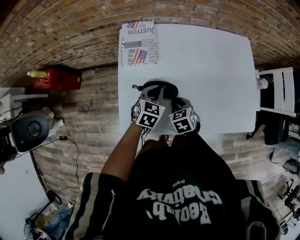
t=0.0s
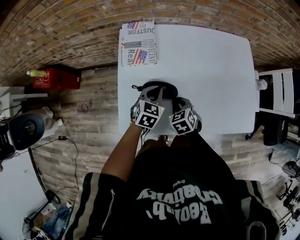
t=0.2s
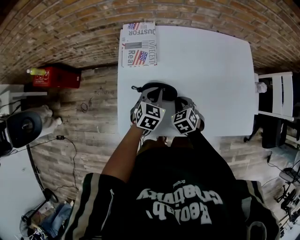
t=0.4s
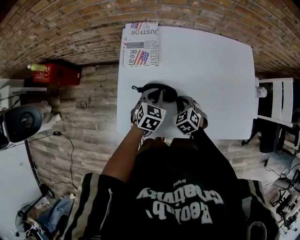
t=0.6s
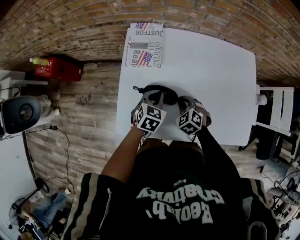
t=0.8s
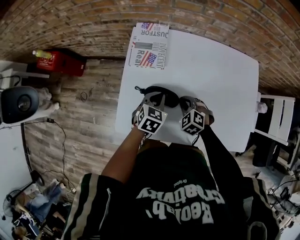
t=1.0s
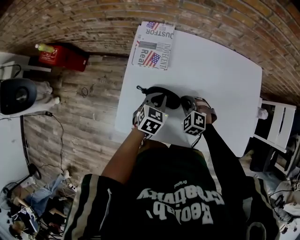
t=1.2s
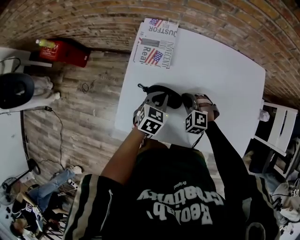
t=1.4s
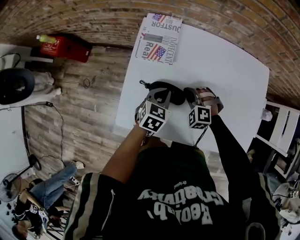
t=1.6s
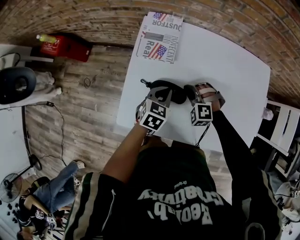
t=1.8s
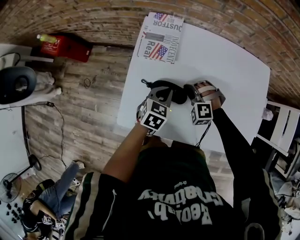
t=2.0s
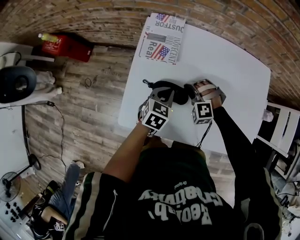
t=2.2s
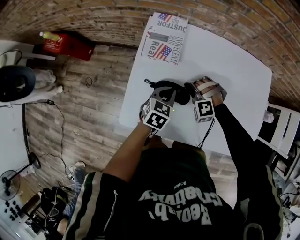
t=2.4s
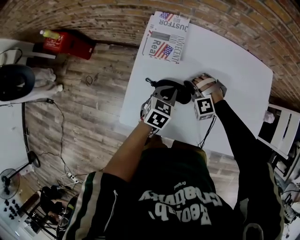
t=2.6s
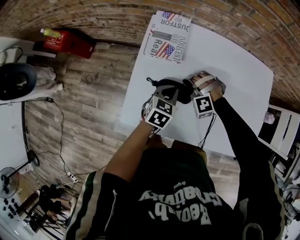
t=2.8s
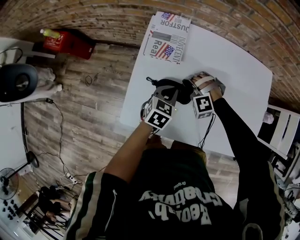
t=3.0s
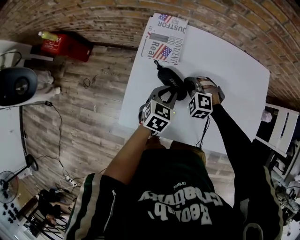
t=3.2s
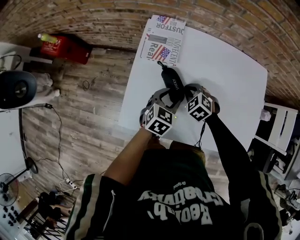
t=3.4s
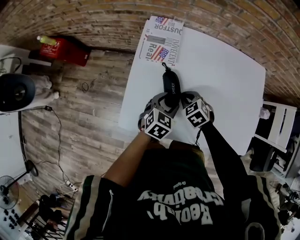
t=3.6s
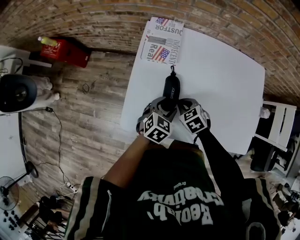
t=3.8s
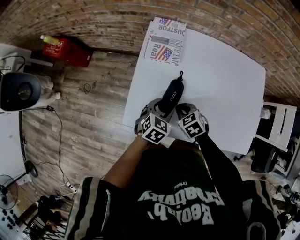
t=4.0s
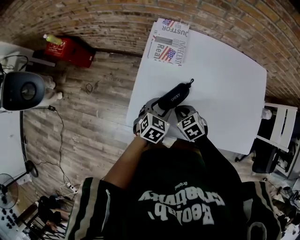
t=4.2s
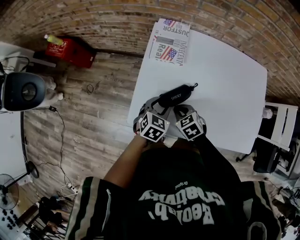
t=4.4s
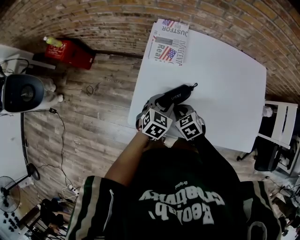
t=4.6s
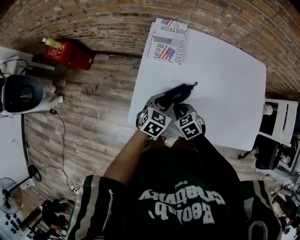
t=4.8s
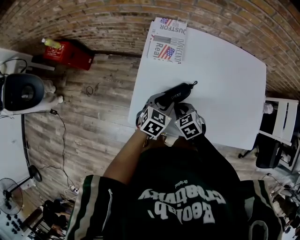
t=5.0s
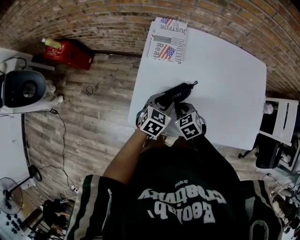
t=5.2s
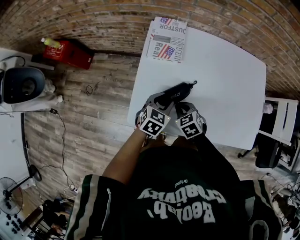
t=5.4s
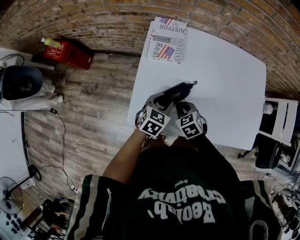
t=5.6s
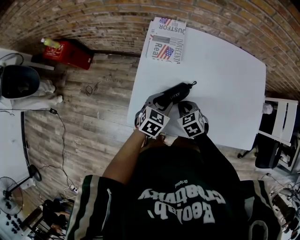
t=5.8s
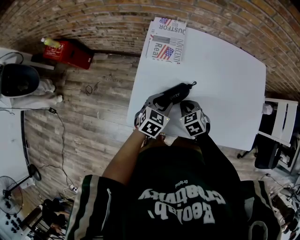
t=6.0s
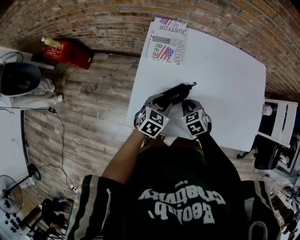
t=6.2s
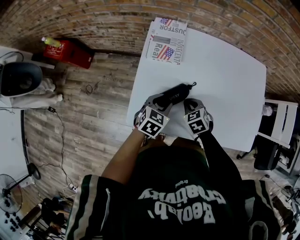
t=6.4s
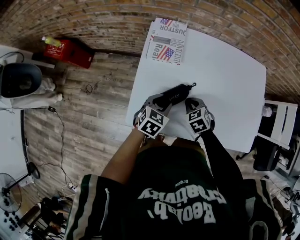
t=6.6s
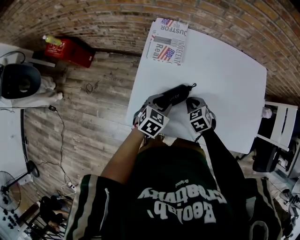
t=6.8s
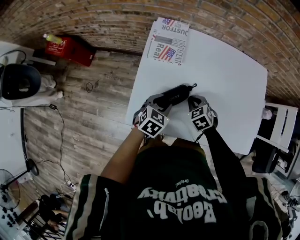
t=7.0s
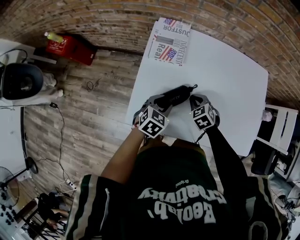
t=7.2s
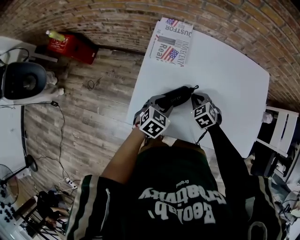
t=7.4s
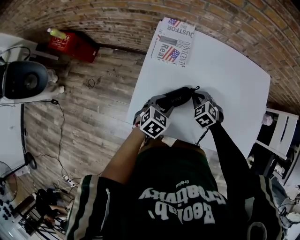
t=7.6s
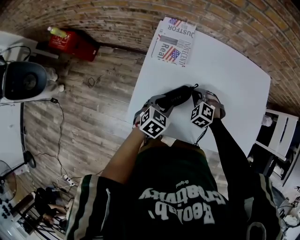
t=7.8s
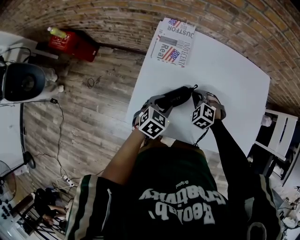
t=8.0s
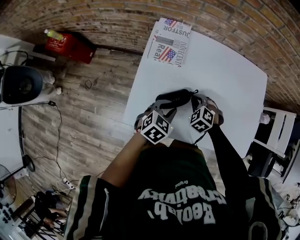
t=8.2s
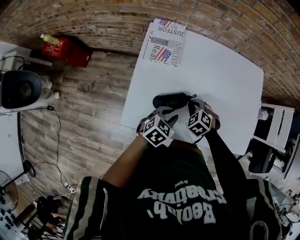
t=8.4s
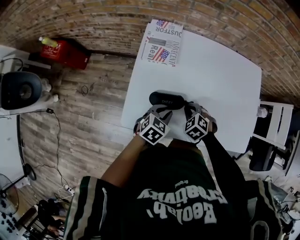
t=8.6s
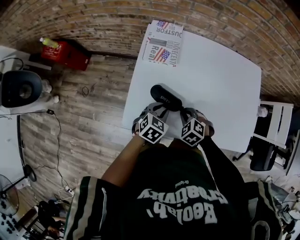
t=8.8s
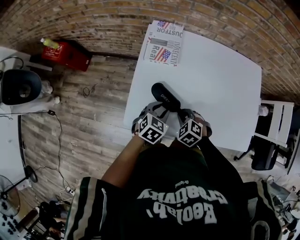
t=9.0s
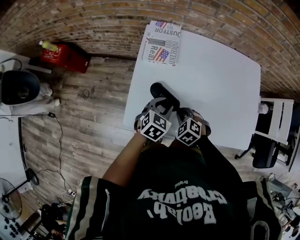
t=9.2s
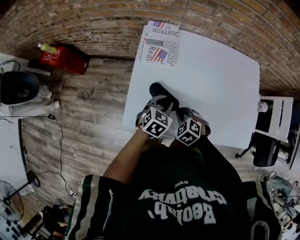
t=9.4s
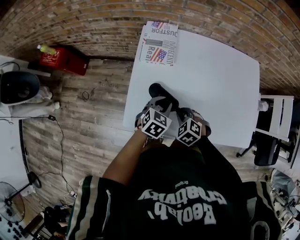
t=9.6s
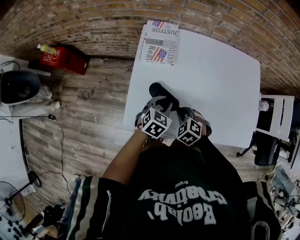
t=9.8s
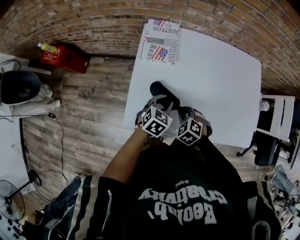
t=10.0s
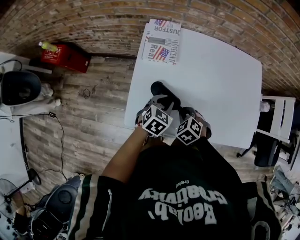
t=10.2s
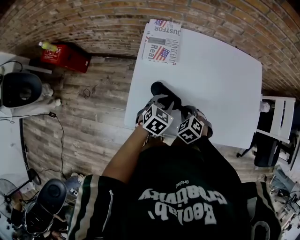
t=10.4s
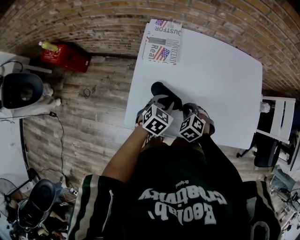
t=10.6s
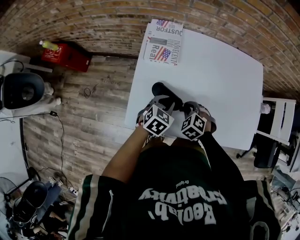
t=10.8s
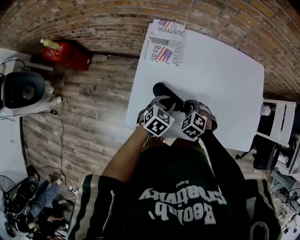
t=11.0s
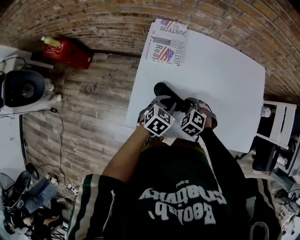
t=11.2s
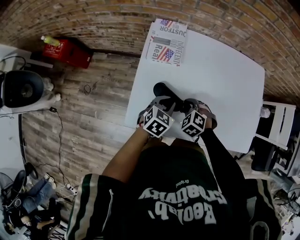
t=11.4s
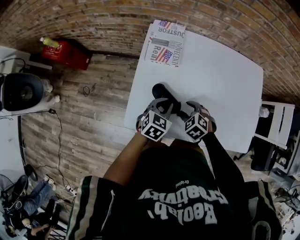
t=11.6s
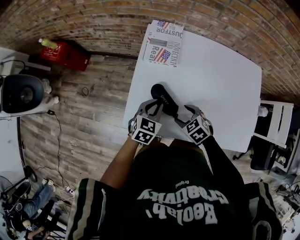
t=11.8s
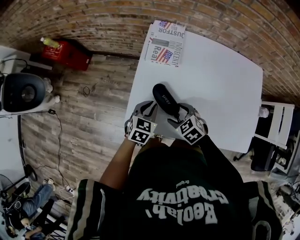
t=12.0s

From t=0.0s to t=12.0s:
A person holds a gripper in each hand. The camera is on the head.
From t=0.0s to t=1.6s: The right gripper travels forward by roughly 10 cm, and rotates around the line of its fingers by roughly 70 degrees, counterclockwise from behind.
From t=1.6s to t=3.0s: The right gripper turns by about 30 degrees.
From t=3.0s to t=4.4s: The left gripper is displaced backward and to the left by about 10 cm, and opens up. Meanwhile the right gripper is displaced backward by roughly 10 cm, and twists approximately 80 degrees clockwise, seen from behind.
From t=4.4s to t=6.0s: The grippers make only small movements.
From t=6.0s to t=7.6s: The right gripper goes about 5 cm forward, and rotates roughly 20 degrees.
From t=7.6s to t=9.0s: The right gripper is displaced backward by some 10 cm.
From t=9.0s to t=10.4s: The grippers stay close to where they were, moving slightly.
From t=10.4s to t=12.0s: The right gripper ends up approximately 5 cm from where it was, turns by some 20 degrees, and opens its fingers, while the left gripper shifts by approximately 10 cm.

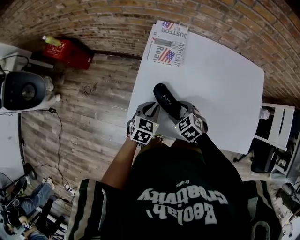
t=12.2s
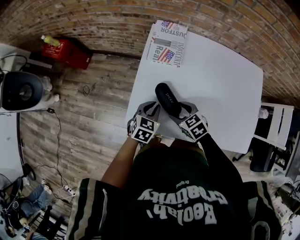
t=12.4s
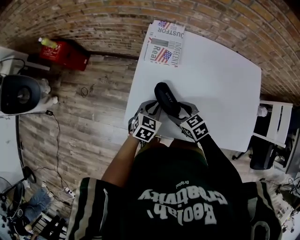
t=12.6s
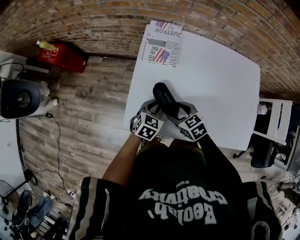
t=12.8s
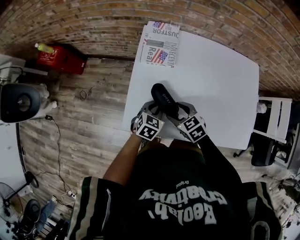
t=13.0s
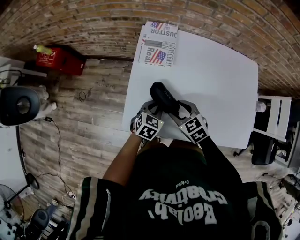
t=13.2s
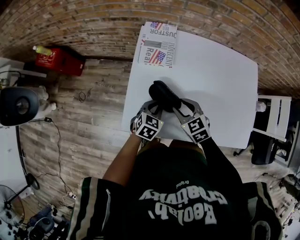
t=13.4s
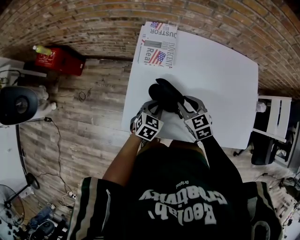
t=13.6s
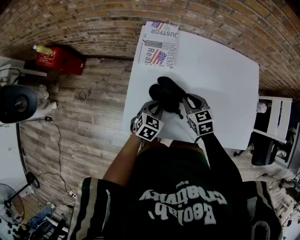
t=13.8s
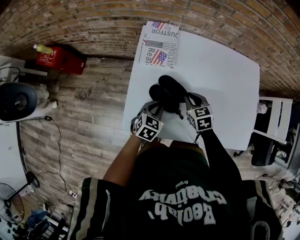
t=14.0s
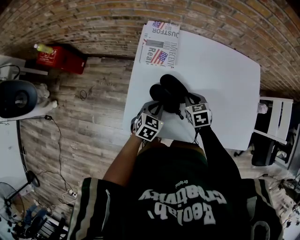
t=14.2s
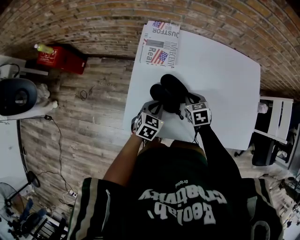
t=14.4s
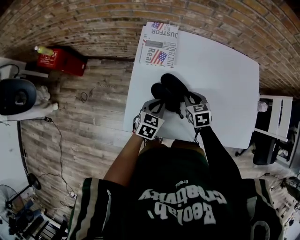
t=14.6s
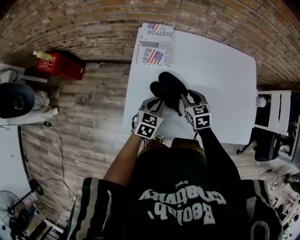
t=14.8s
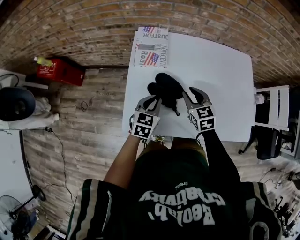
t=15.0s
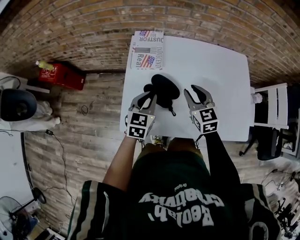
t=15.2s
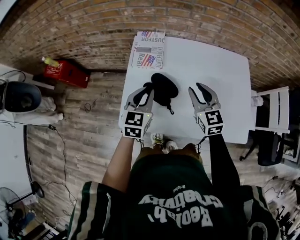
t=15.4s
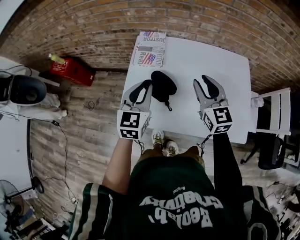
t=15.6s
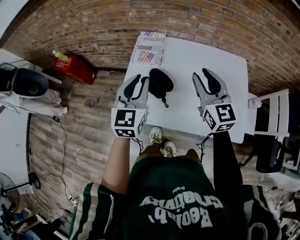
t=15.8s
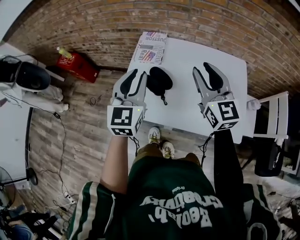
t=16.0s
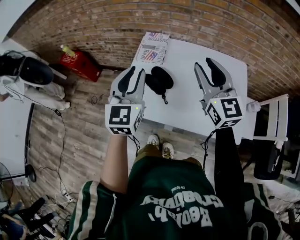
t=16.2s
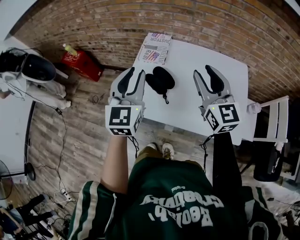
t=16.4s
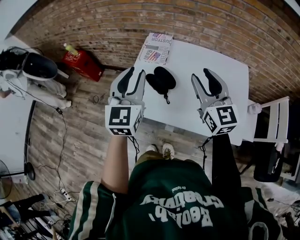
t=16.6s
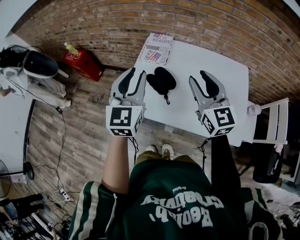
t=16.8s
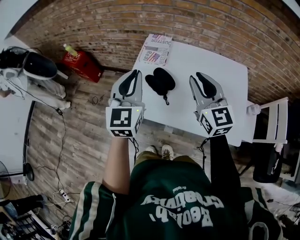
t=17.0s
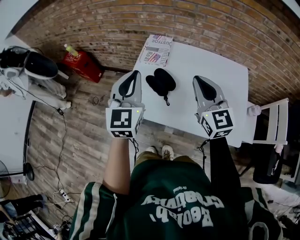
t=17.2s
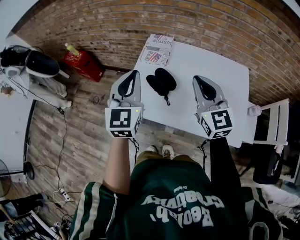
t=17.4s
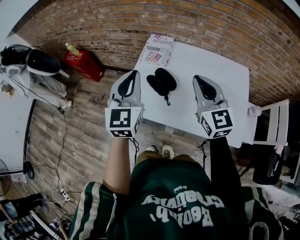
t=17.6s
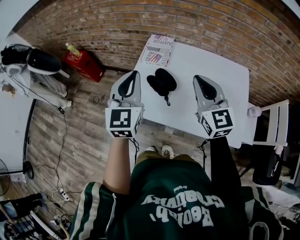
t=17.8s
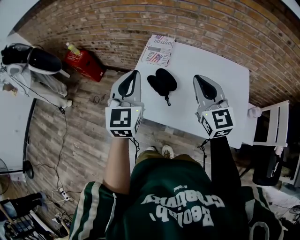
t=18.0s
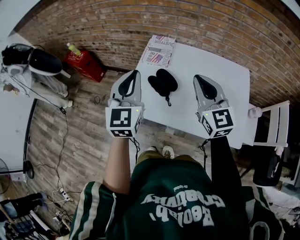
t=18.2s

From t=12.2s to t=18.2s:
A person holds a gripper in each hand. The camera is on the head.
From t=12.2s to t=13.8s: The right gripper goes about 10 cm to the right and forward, changes its angle by roughly 30 degrees, and closes its fingers. Meanwhile the left gripper moves some 5 cm.
From t=13.8s to t=15.2s: The grippers both shift upward by roughly 10 cm.
From t=15.2s to t=16.6s: The grippers both shift upward and backward by about 25 cm. The left gripper changes its angle by approximately 30 degrees. Meanwhile the right gripper swivels approximately 30 degrees.
From t=16.6s to t=18.2s: The right gripper closes up. The left gripper closes up.

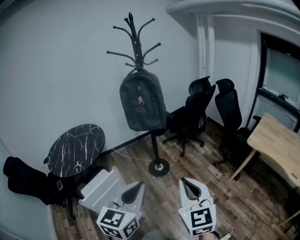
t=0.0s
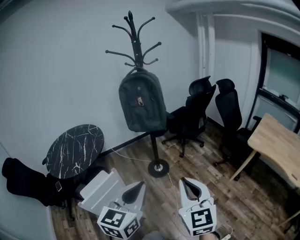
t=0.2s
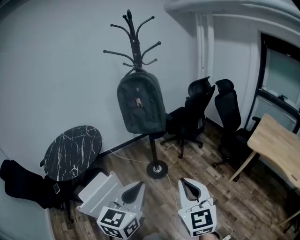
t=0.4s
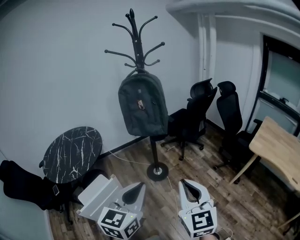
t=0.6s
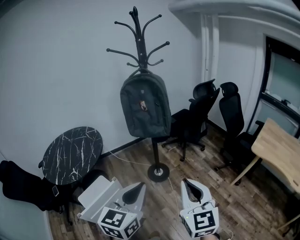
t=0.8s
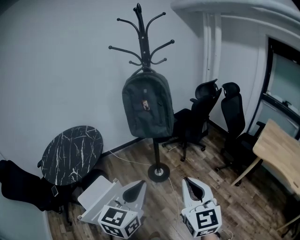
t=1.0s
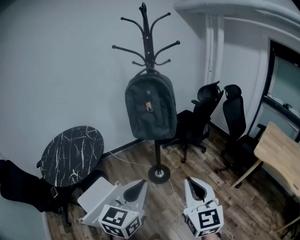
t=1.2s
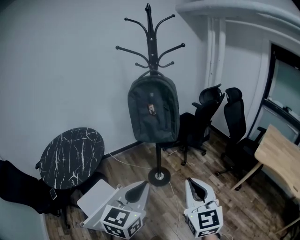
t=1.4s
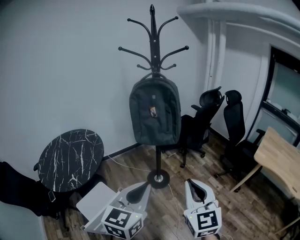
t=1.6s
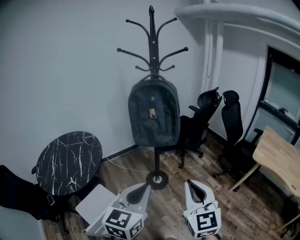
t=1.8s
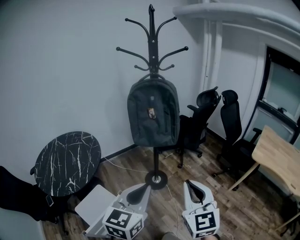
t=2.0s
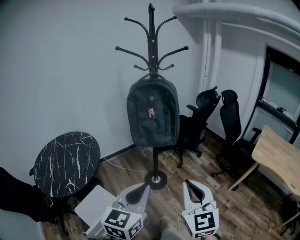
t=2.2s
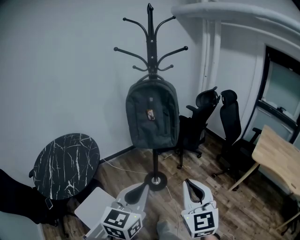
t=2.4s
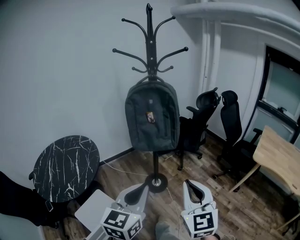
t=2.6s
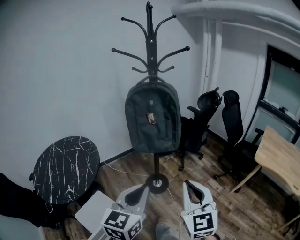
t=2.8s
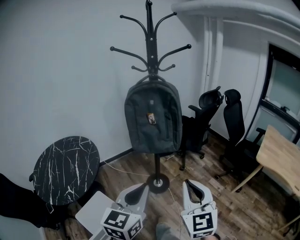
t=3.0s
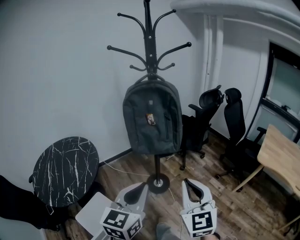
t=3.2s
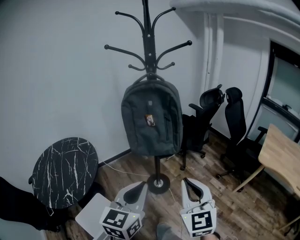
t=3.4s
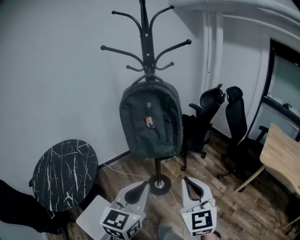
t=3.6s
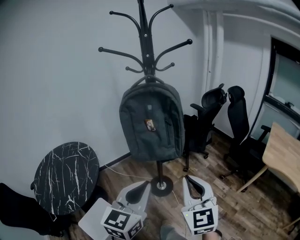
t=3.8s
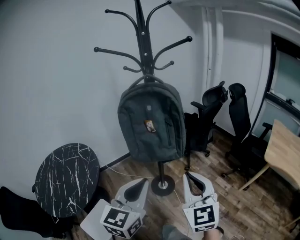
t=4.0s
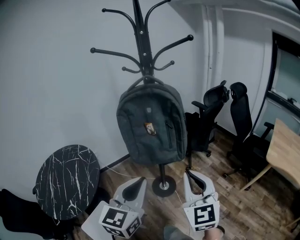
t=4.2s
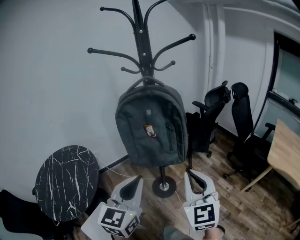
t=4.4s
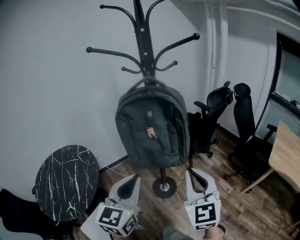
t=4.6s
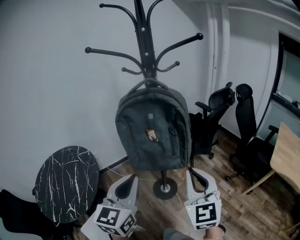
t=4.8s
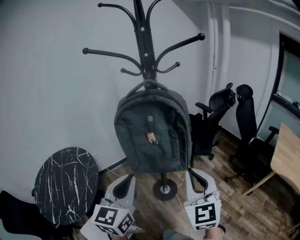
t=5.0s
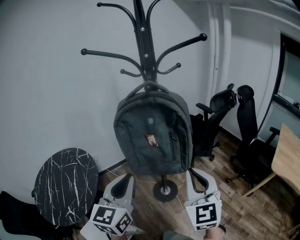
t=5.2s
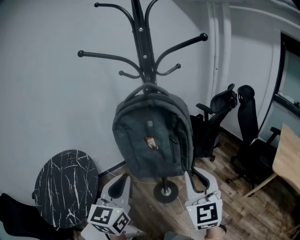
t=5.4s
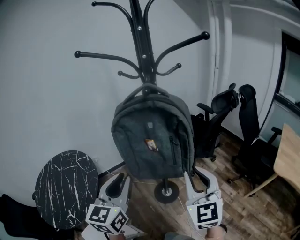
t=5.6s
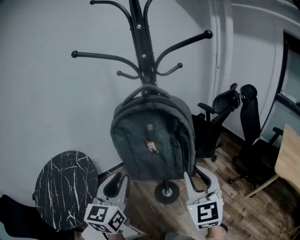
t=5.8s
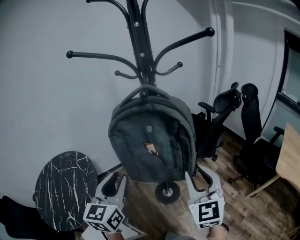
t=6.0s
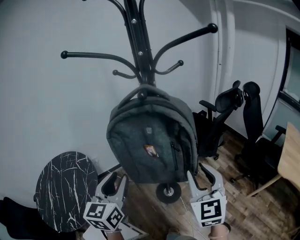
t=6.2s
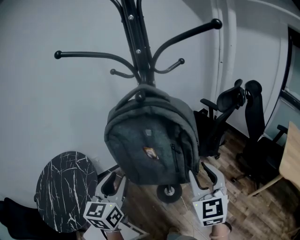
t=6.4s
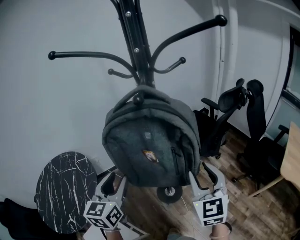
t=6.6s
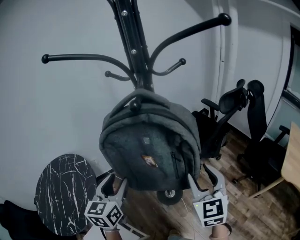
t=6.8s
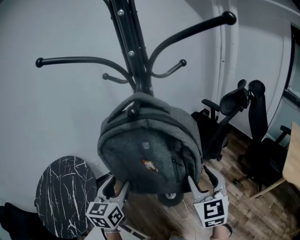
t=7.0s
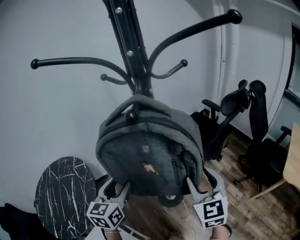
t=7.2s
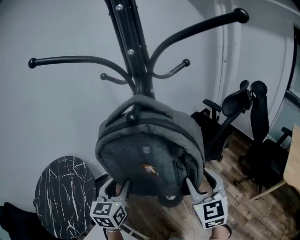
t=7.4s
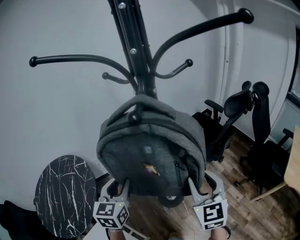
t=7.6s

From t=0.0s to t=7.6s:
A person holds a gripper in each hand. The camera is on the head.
From t=0.0s to t=1.6s: The grippers both shift forward and to the left by roughly 20 cm.
From t=1.6s to t=3.0s: The grippers both shift forward by approximately 10 cm.
From t=3.0s to t=4.6s: The two grippers go some 15 cm forward.
From t=4.6s to t=6.0s: The left gripper shifts some 15 cm forward and to the left, and opens its fingers. Meanwhile the right gripper travels forward by some 10 cm, and opens up.
From t=6.0s to t=7.6s: Both grippers move forward and downward, roughly 15 cm. The left gripper opens, then closes once more.
